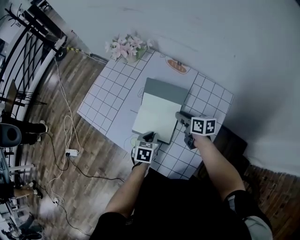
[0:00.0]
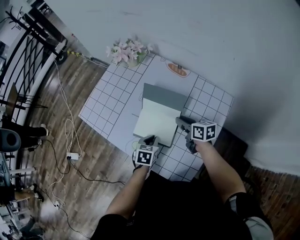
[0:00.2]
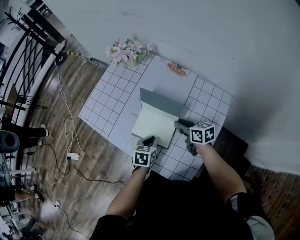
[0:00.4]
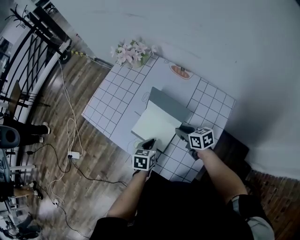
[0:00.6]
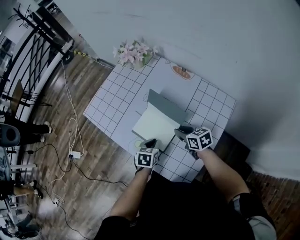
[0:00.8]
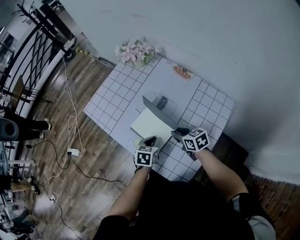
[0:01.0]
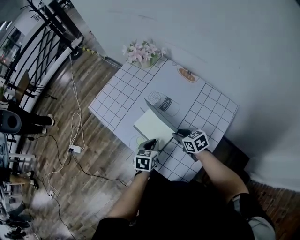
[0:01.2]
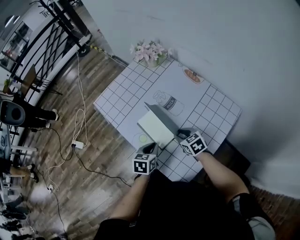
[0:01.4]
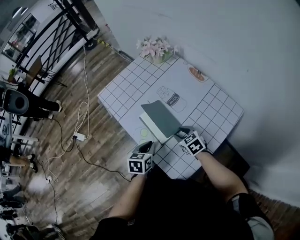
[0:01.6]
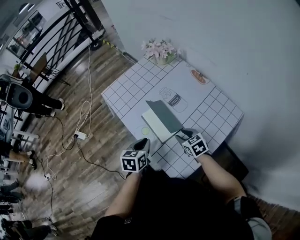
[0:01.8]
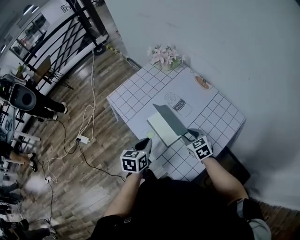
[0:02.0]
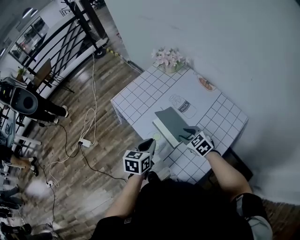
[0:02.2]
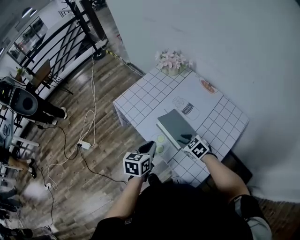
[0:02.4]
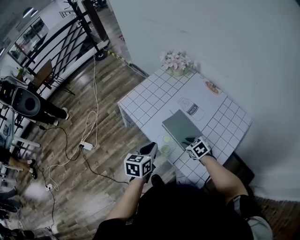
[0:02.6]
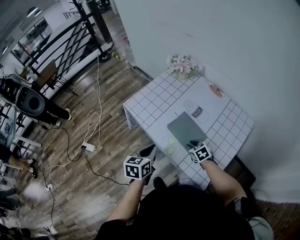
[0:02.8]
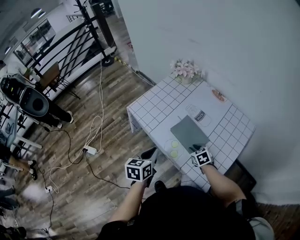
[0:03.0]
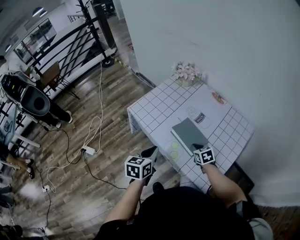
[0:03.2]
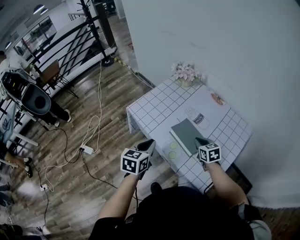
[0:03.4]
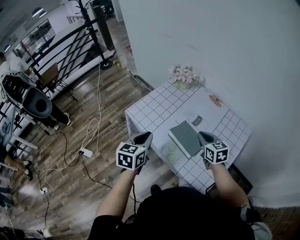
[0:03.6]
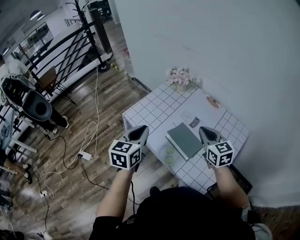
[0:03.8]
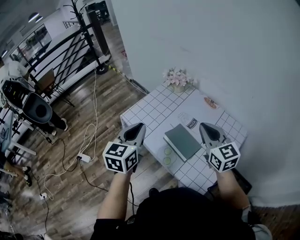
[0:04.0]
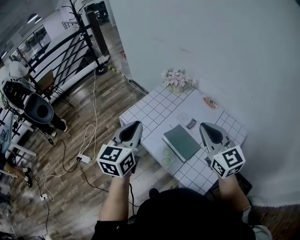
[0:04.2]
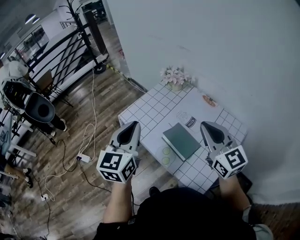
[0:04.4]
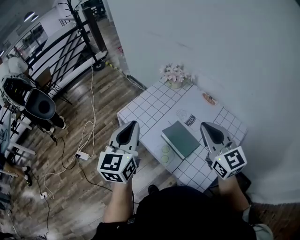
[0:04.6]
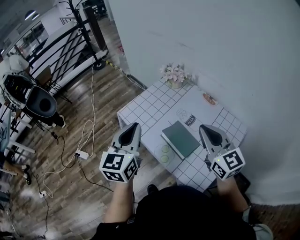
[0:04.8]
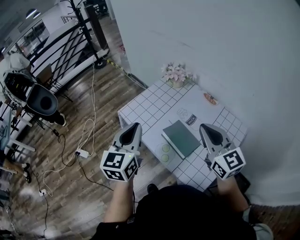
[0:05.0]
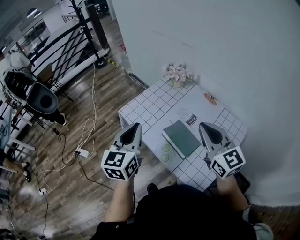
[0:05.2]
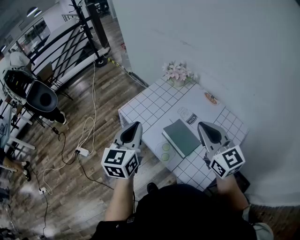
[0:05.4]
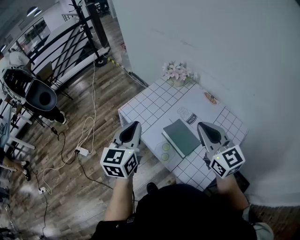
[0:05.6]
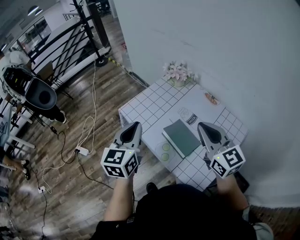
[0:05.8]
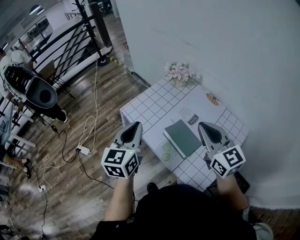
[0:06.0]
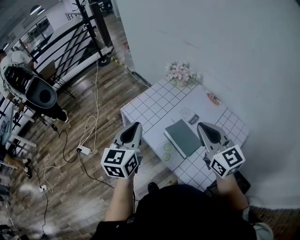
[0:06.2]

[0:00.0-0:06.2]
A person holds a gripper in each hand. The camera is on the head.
0:00.0 to 0:01.6: The right gripper is displaced backward and to the left by roughly 15 cm, and twists roughly 50 degrees counterclockwise, seen from behind. The left gripper travels backward, upward and to the left by roughly 10 cm, and rotates approximately 20 degrees.
0:01.6 to 0:03.2: The right gripper is displaced to the left by roughly 10 cm, and closes. The left gripper travels to the left and upward by approximately 20 cm.
0:03.2 to 0:04.6: The left gripper is displaced upward by about 20 cm, and rotates approximately 30 degrees; the right gripper travels upward by roughly 35 cm, and points its fingers roughly 50 degrees further upward.
0:04.6 to 0:06.2: The grippers stay close to where they were, moving slightly.

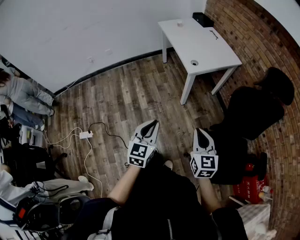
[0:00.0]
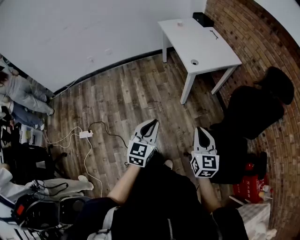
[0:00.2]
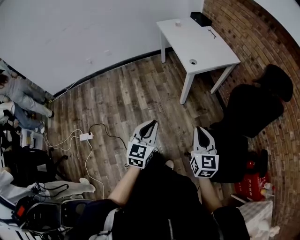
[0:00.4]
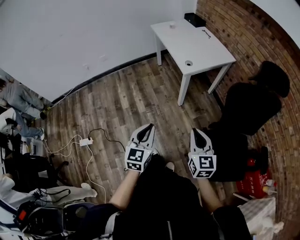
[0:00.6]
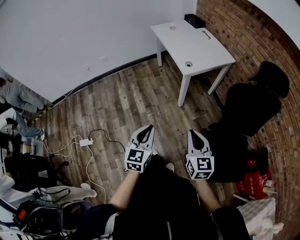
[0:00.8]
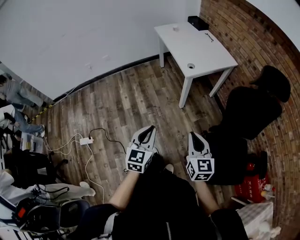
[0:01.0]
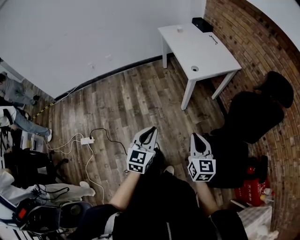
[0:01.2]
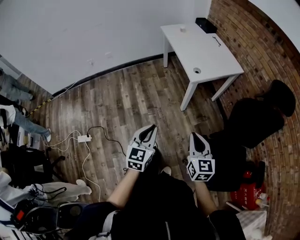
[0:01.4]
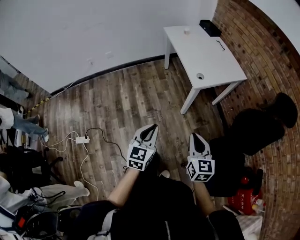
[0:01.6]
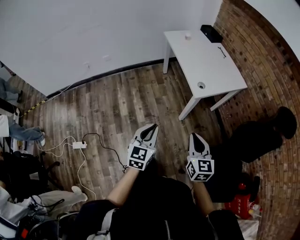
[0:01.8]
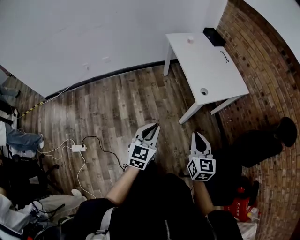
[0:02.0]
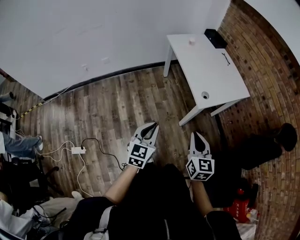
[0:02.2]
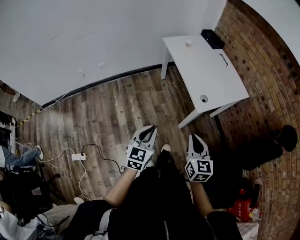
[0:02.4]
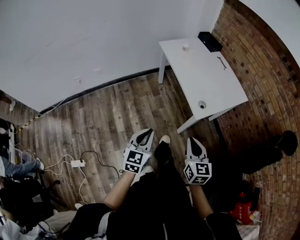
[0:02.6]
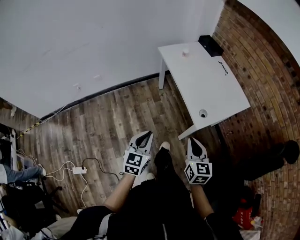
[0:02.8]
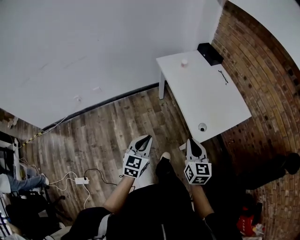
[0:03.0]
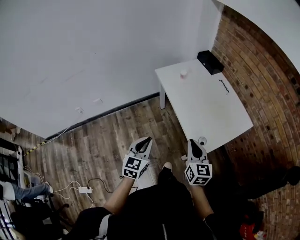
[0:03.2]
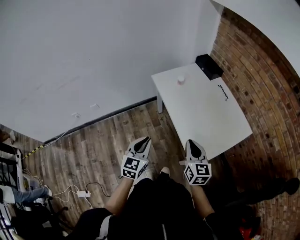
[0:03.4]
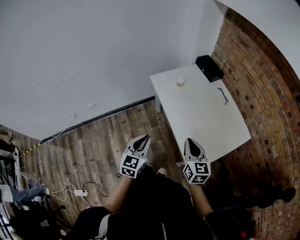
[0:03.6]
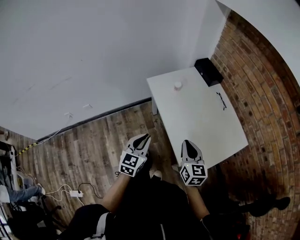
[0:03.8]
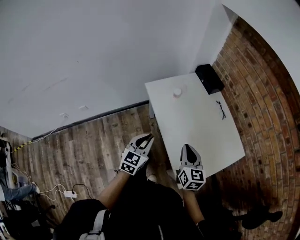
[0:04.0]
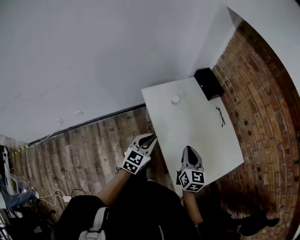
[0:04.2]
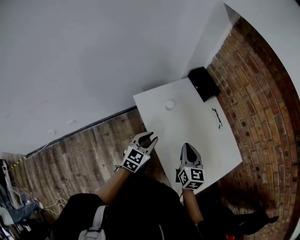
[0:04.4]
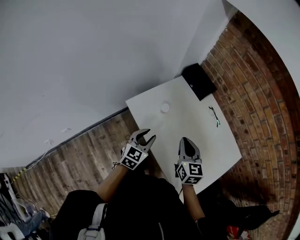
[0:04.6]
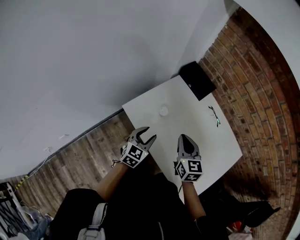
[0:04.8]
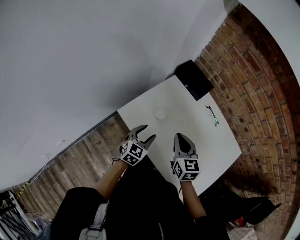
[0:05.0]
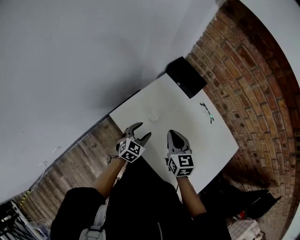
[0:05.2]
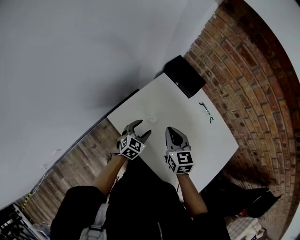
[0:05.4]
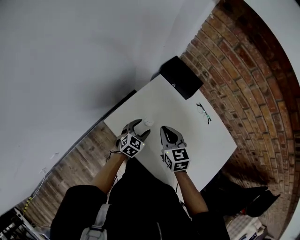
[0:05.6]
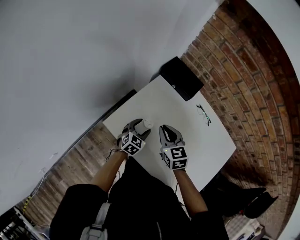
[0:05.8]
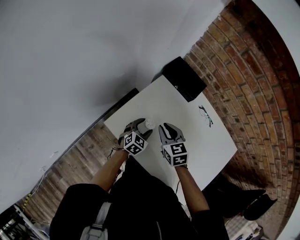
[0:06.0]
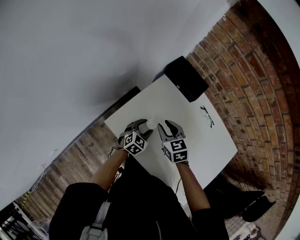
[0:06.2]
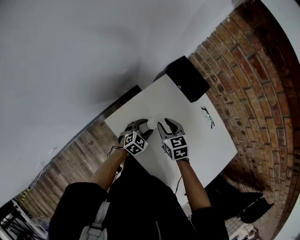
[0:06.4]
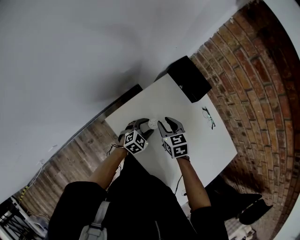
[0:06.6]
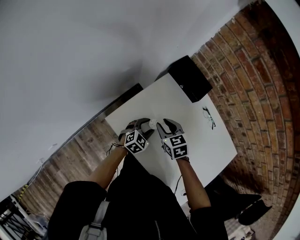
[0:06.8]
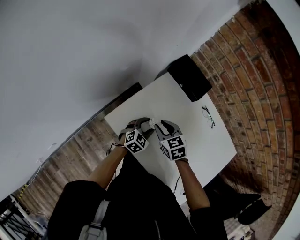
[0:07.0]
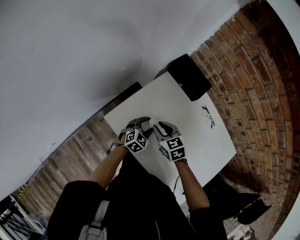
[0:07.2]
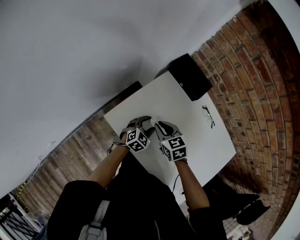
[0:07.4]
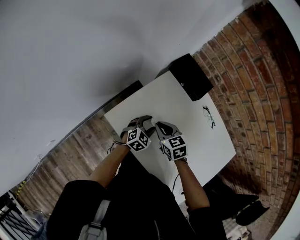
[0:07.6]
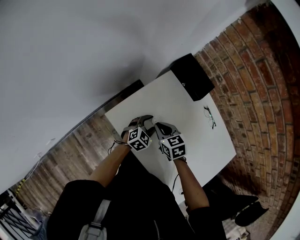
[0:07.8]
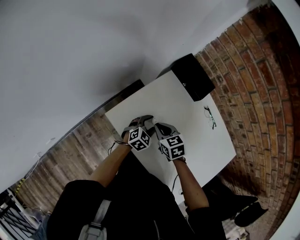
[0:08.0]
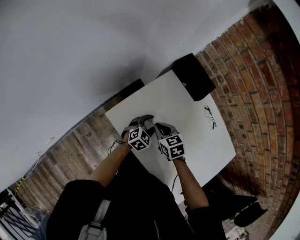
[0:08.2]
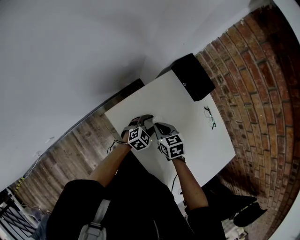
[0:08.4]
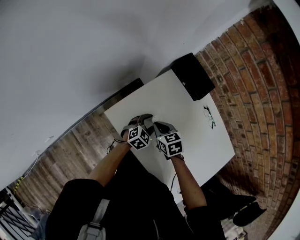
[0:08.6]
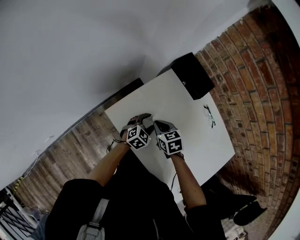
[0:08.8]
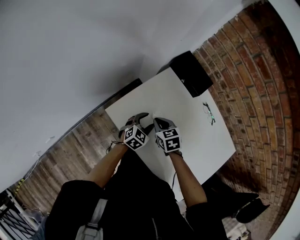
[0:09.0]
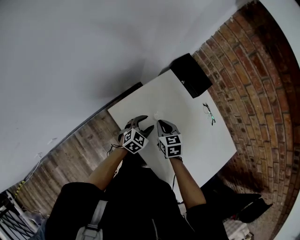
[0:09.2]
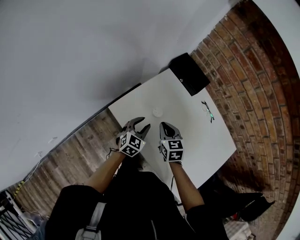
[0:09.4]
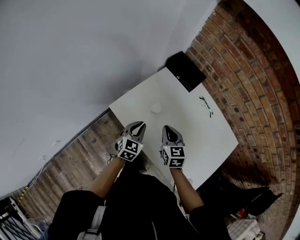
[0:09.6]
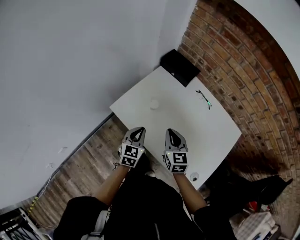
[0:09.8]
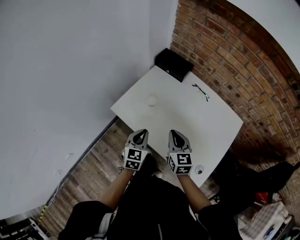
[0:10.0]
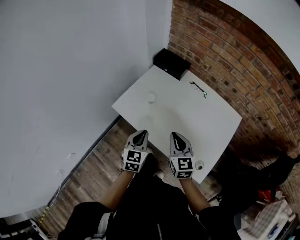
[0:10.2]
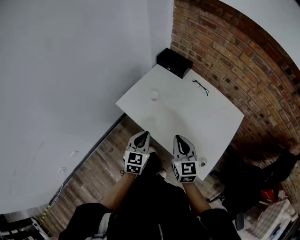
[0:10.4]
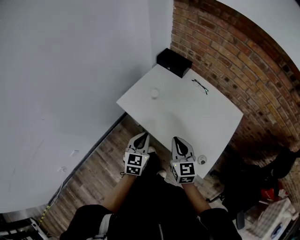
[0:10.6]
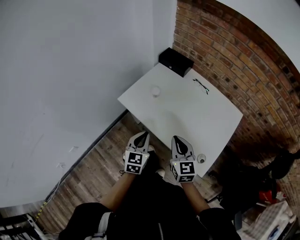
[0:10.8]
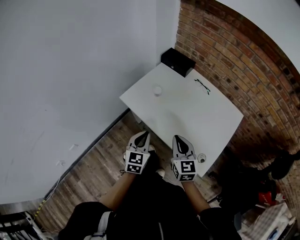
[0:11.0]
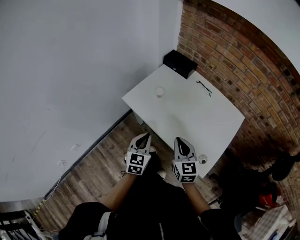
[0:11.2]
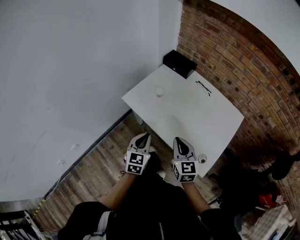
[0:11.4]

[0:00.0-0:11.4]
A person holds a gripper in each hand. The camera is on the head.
0:00.0 to 0:01.4: The right gripper ends up some 5 cm from where it was.
0:01.4 to 0:02.8: Both grippers travel together forward, roughly 35 cm.
0:02.8 to 0:04.2: Both grippers are carried forward, some 50 cm.
0:04.2 to 0:05.6: The left gripper goes roughly 35 cm forward and downward, turns by some 30 degrees, and opens its fingers. Meanwhile the right gripper heads forward and to the left, covering approximately 30 cm.
0:05.6 to 0:07.2: The right gripper moves downward, about 10 cm, rotates approximately 20 degrees, and opens its fingers.
0:07.2 to 0:08.6: The right gripper closes its fingers.
0:08.6 to 0:10.0: The right gripper heads backward, upward and to the right, covering approximately 25 cm, and swivels some 40 degrees. Meanwhile the left gripper moves backward and upward, approximately 25 cm, turns by about 20 degrees, and closes.
0:10.0 to 0:11.4: The two grippers go about 15 cm backward.

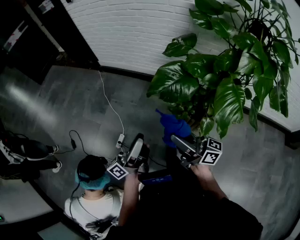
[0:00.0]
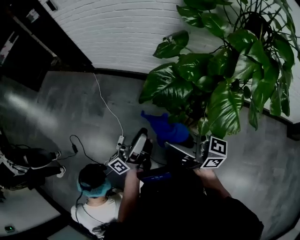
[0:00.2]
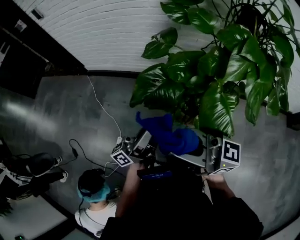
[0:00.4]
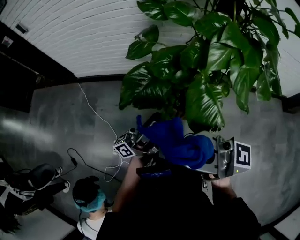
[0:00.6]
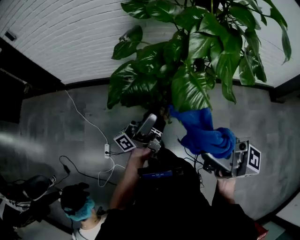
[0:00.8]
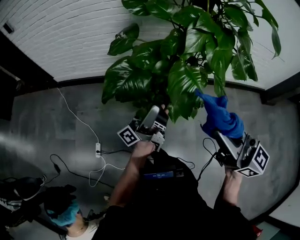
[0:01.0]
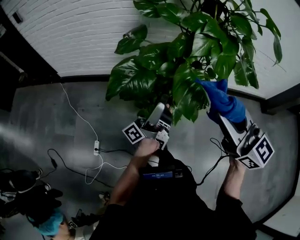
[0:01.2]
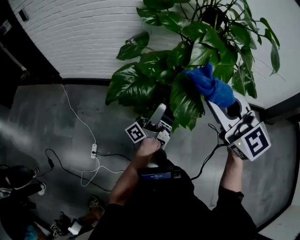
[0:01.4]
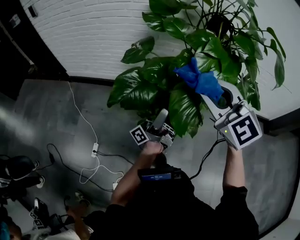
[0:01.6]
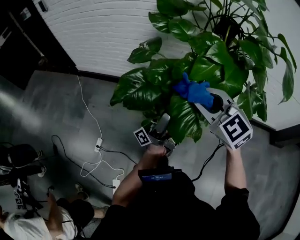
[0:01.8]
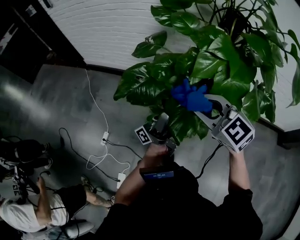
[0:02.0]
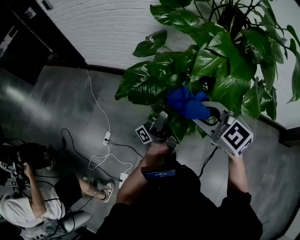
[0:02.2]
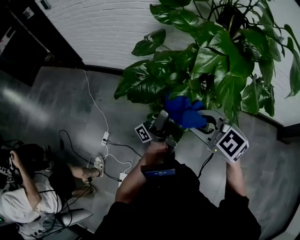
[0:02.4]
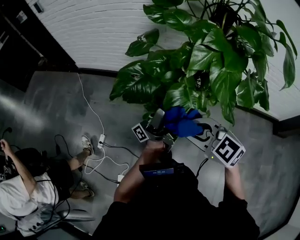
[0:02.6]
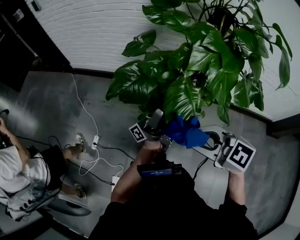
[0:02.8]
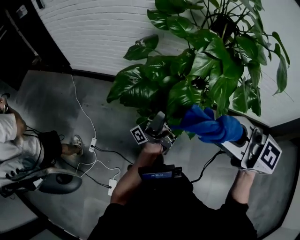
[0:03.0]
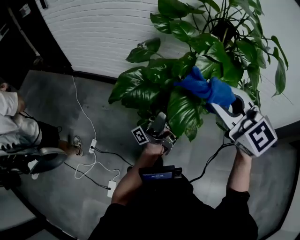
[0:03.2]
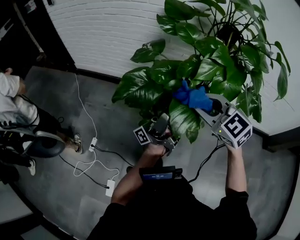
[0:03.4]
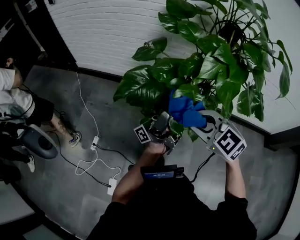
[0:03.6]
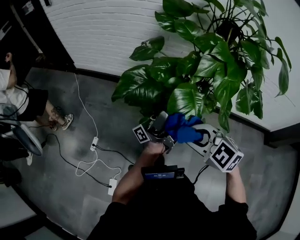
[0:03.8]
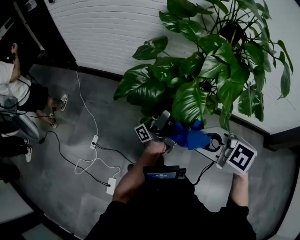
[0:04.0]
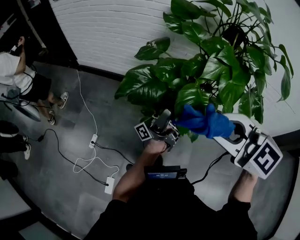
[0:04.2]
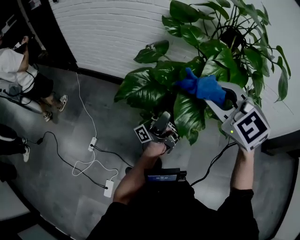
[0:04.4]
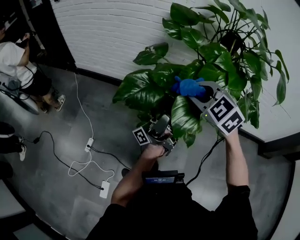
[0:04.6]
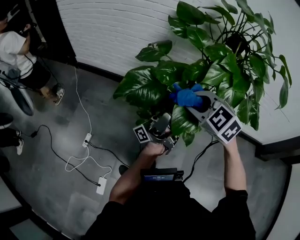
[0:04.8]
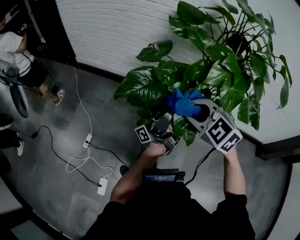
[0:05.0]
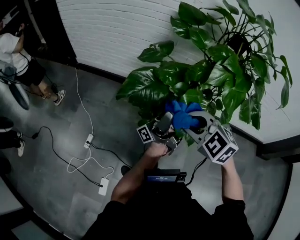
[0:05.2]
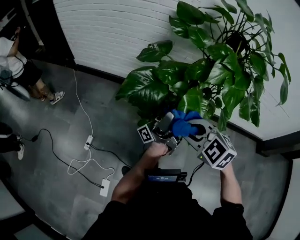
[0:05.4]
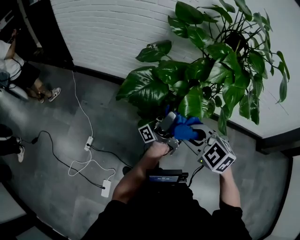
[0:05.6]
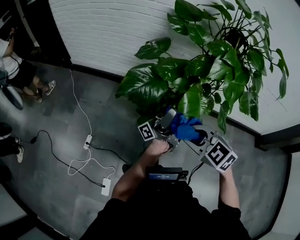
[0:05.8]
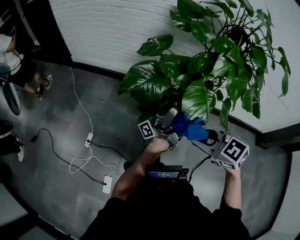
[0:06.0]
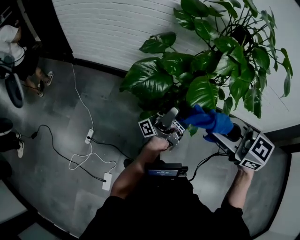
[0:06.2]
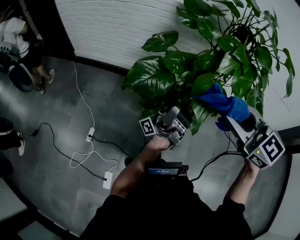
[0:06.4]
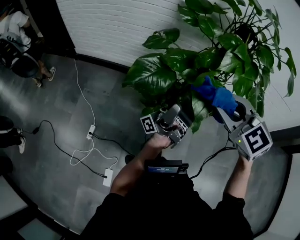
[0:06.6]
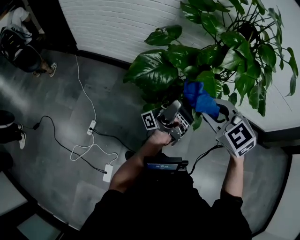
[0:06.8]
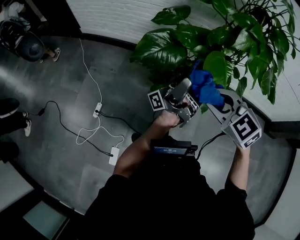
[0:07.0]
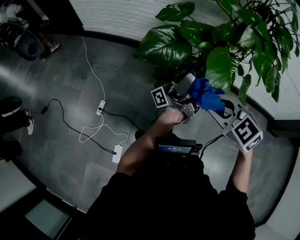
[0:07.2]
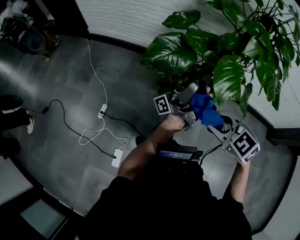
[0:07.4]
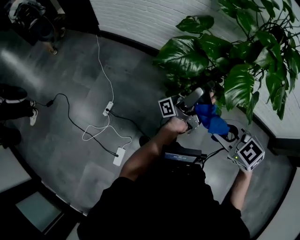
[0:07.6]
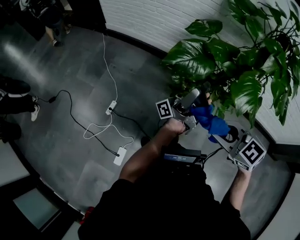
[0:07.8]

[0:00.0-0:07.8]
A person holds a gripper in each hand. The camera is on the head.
0:00.0 to 0:01.6: The right gripper moves approximately 30 cm, and rotates around the line of its fingers by about 70 degrees, counterclockwise from behind.
0:01.6 to 0:03.2: The right gripper travels downward and back again, approximately 15 cm each way.
0:03.2 to 0:04.6: The right gripper goes up and down, roughly 15 cm each way, reversing 2 times, and turns by about 20 degrees.
0:04.6 to 0:06.2: The right gripper moves some 10 cm downward and comes back, and rotates roughly 30 degrees.
0:06.2 to 0:07.8: The right gripper shifts about 15 cm downward.
